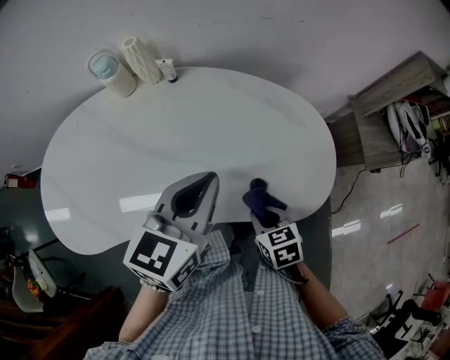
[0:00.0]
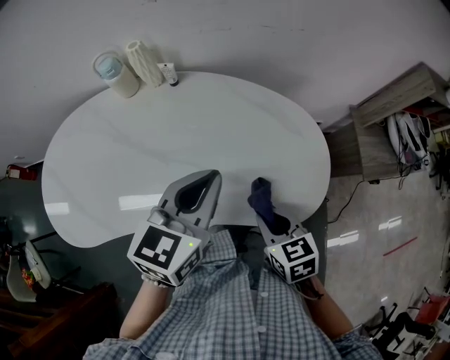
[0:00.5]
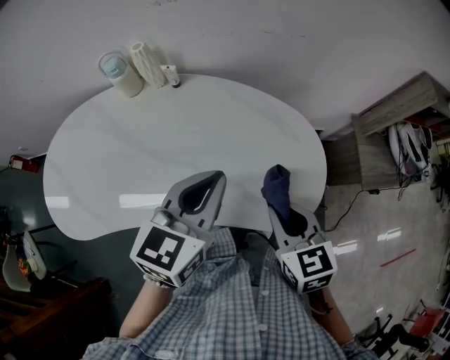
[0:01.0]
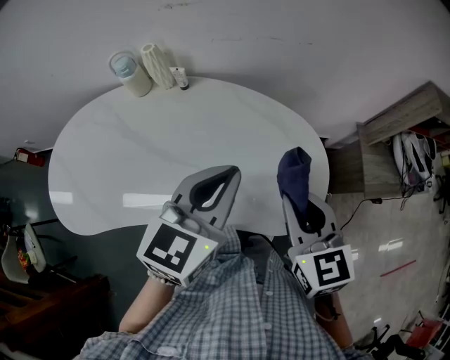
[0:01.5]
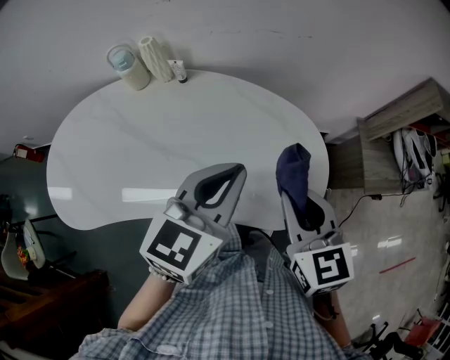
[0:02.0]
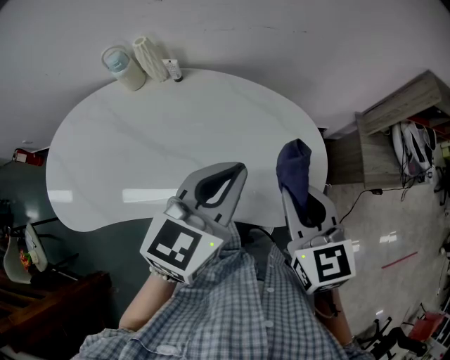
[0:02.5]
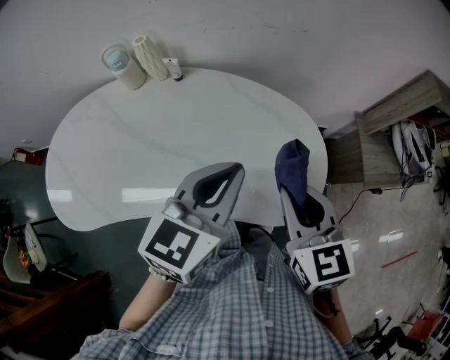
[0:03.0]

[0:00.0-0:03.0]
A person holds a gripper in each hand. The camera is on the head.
0:00.0 to 0:01.5: The left gripper heads to the right, covering approximately 5 cm; the right gripper is displaced upward by some 20 cm, and turns by some 30 degrees.
0:01.5 to 0:03.0: The grippers make only small movements.

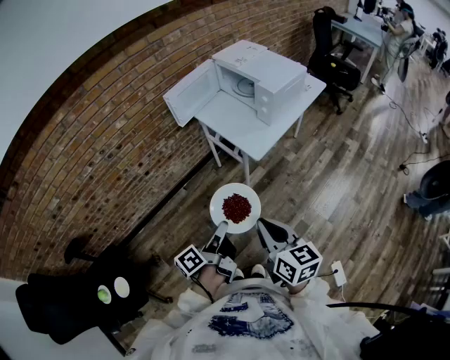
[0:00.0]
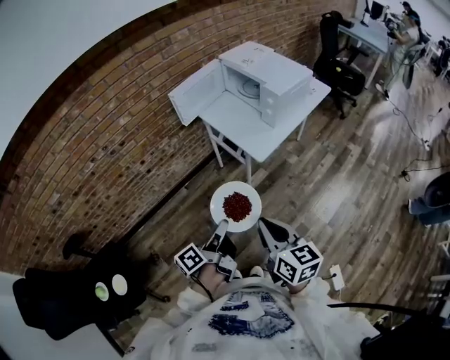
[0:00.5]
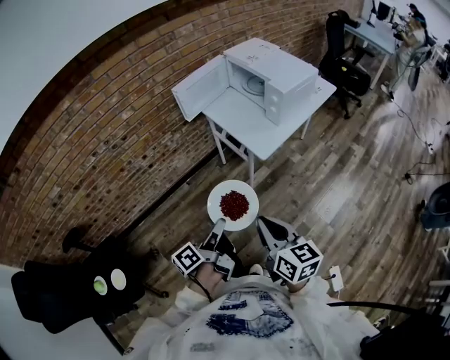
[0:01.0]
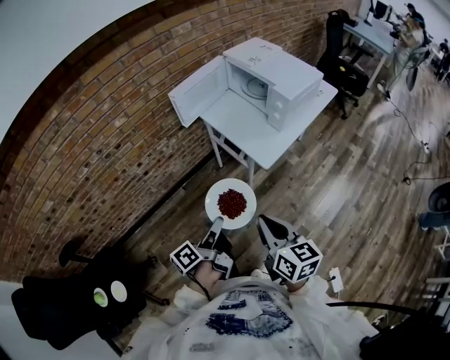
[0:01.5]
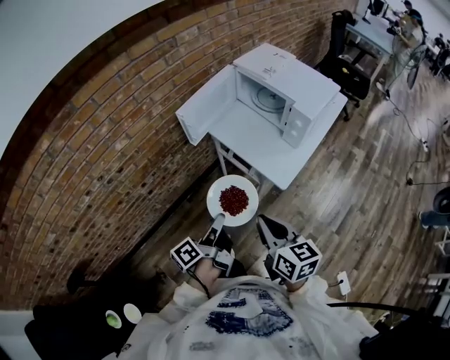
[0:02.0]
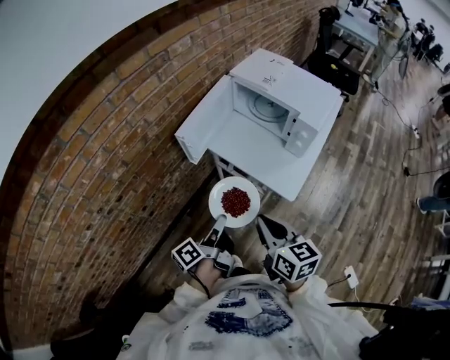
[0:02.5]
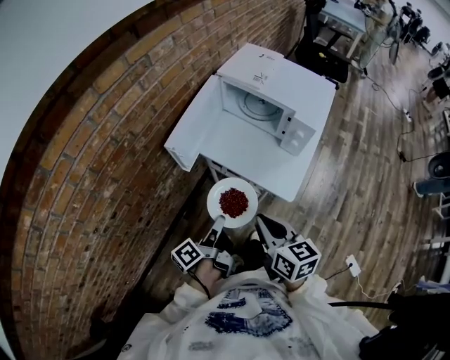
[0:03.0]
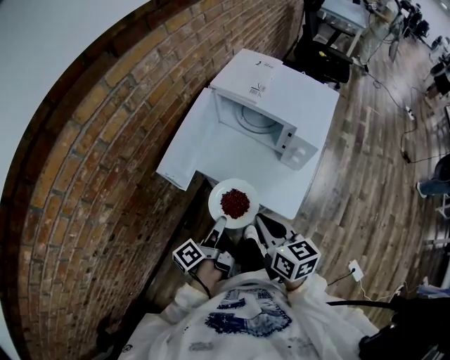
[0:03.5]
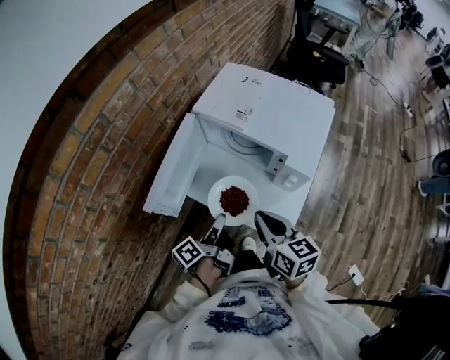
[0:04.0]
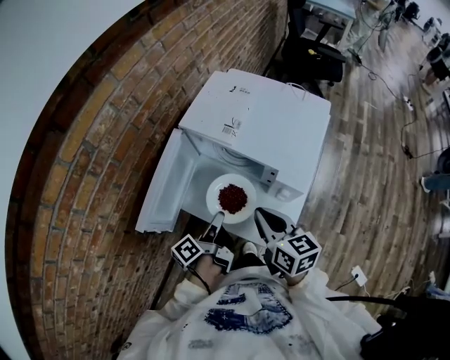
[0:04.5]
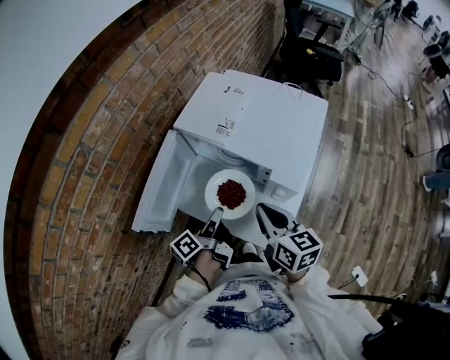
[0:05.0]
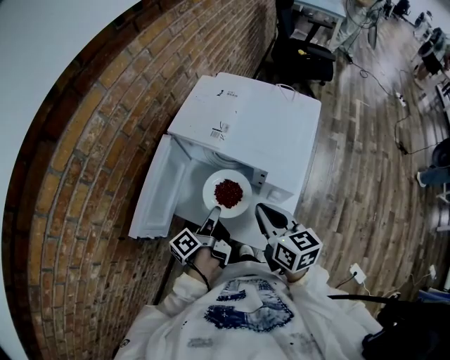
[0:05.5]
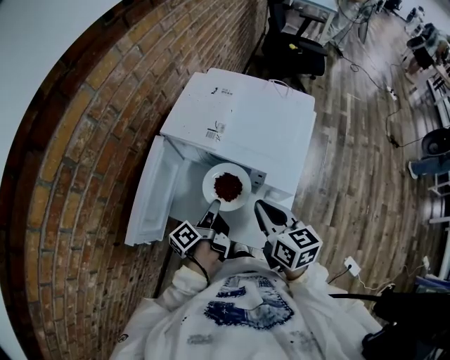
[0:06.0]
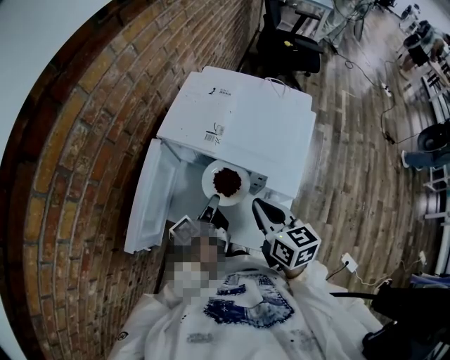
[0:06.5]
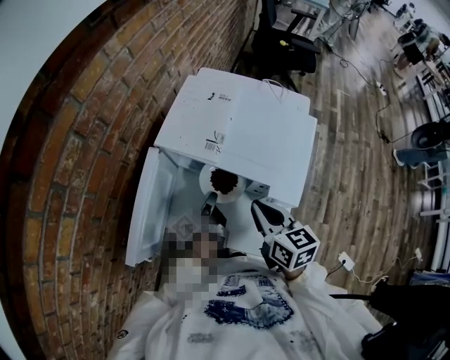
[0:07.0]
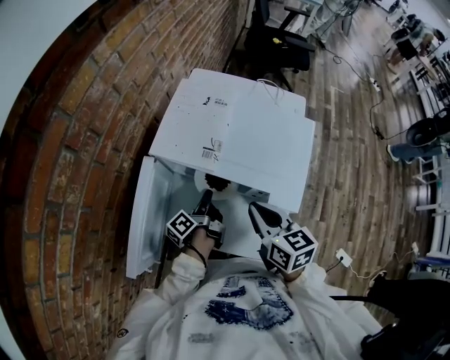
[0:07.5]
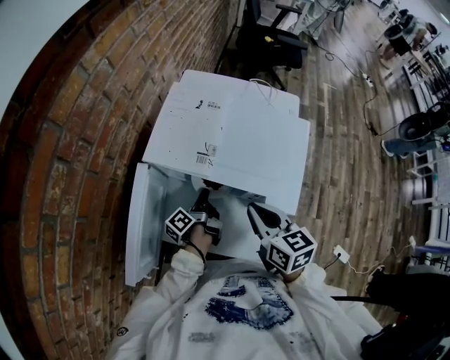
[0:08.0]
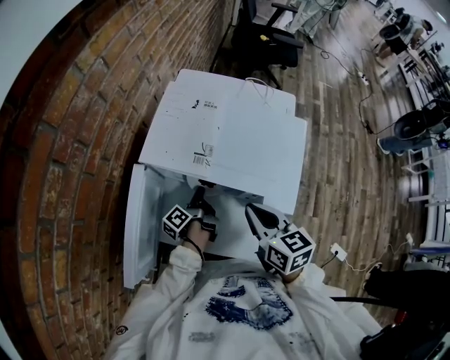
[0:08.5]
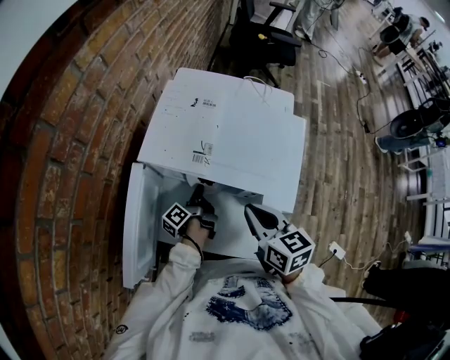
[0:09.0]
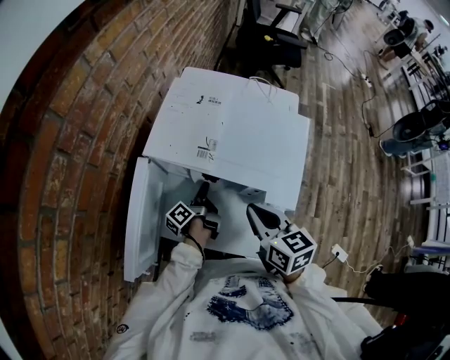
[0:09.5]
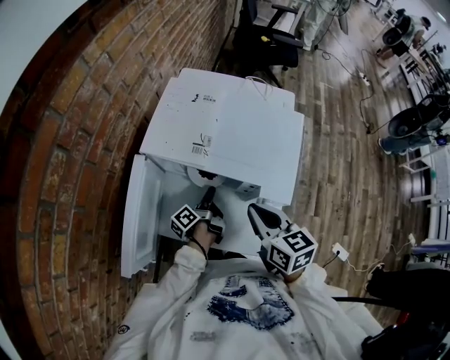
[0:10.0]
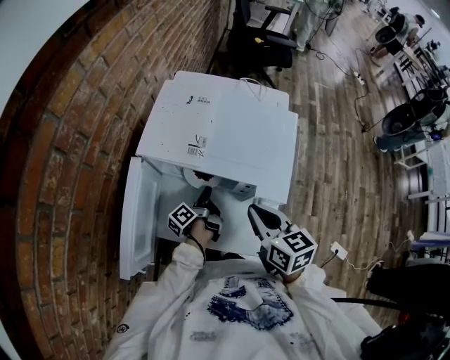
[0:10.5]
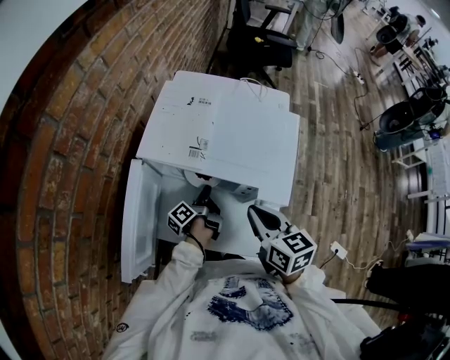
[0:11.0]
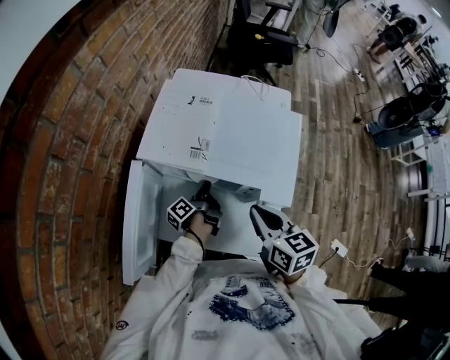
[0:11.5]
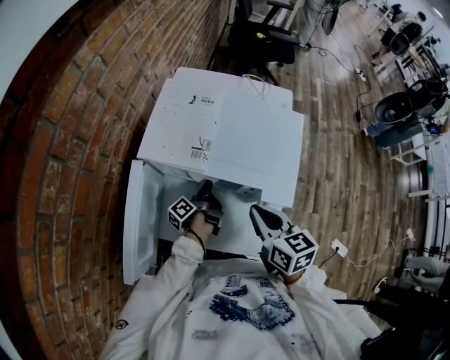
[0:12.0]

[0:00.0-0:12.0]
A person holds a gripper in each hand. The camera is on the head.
0:00.0 to 0:02.0: The right gripper moves approximately 25 cm.
0:02.0 to 0:04.0: The right gripper changes place by about 30 cm.
0:04.0 to 0:06.0: The right gripper changes place by roughly 10 cm.
0:06.0 to 0:08.0: The right gripper ends up roughly 5 cm from where it was.

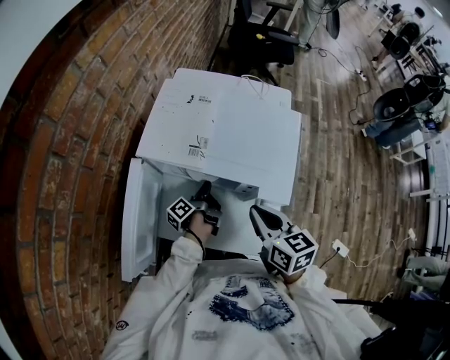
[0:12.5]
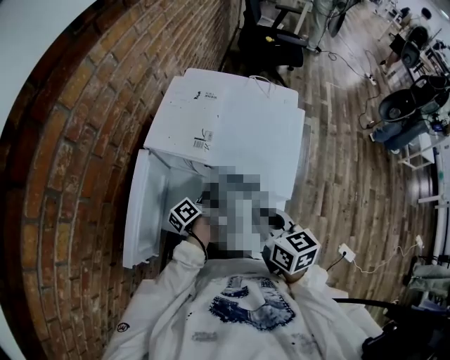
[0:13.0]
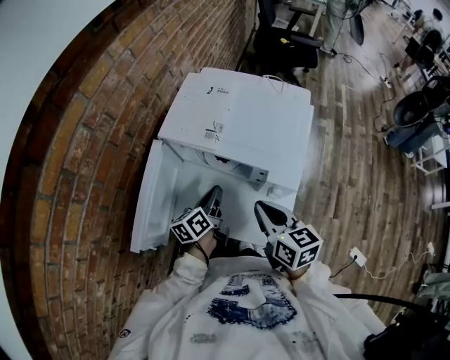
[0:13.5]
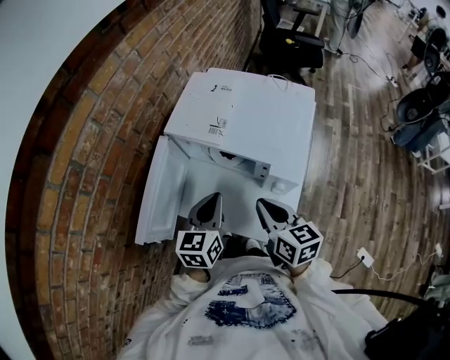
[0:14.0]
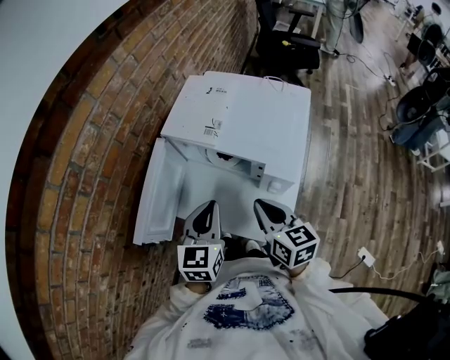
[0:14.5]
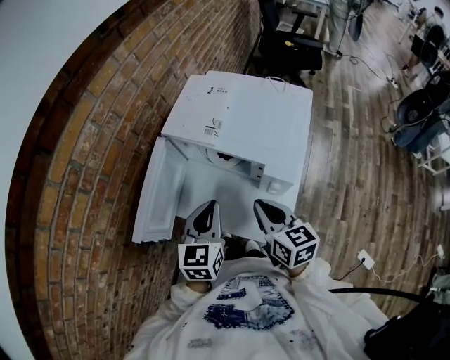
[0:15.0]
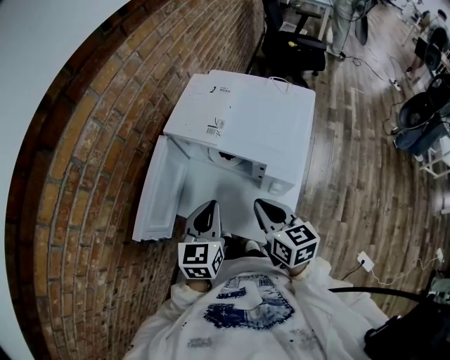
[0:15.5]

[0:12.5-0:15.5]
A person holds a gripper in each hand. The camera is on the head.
0:12.5 to 0:14.0: The right gripper moves approximately 5 cm.

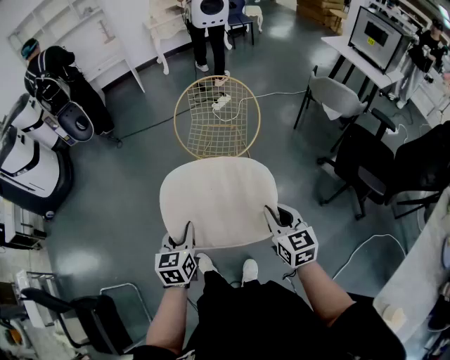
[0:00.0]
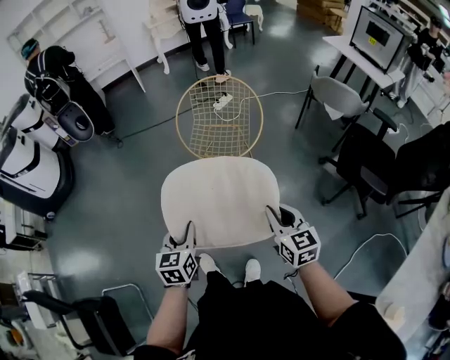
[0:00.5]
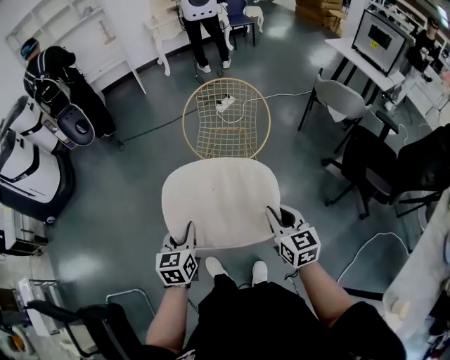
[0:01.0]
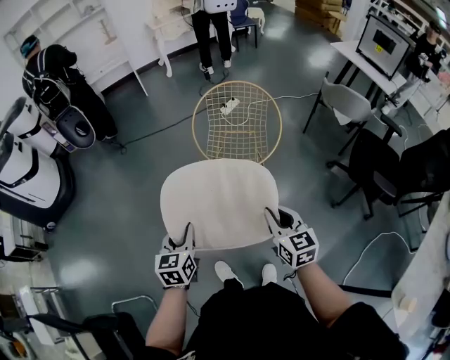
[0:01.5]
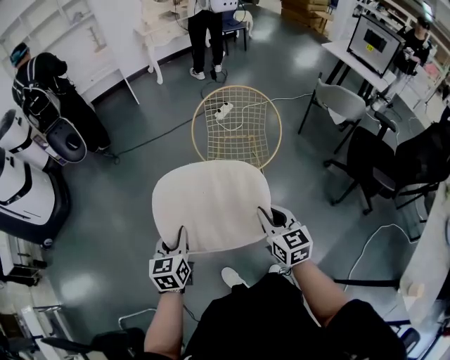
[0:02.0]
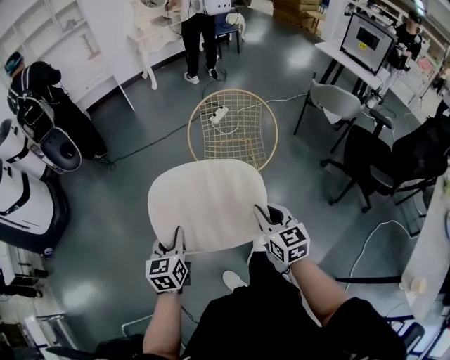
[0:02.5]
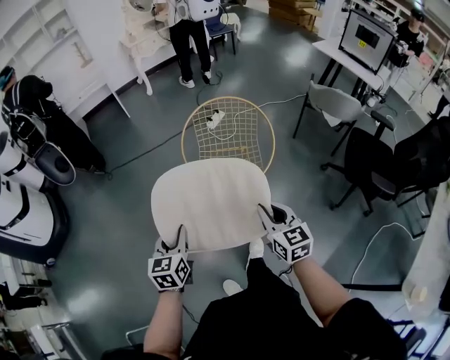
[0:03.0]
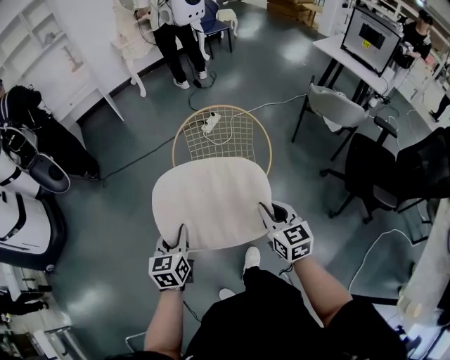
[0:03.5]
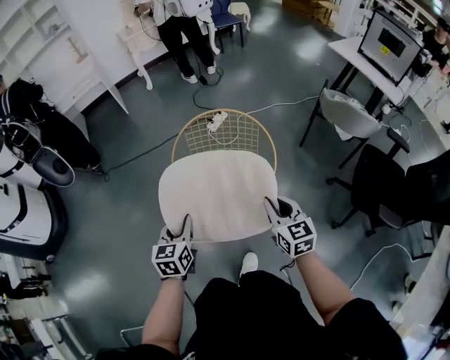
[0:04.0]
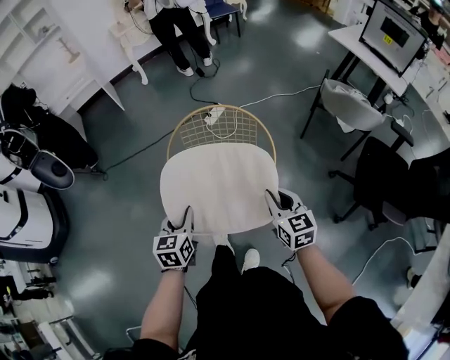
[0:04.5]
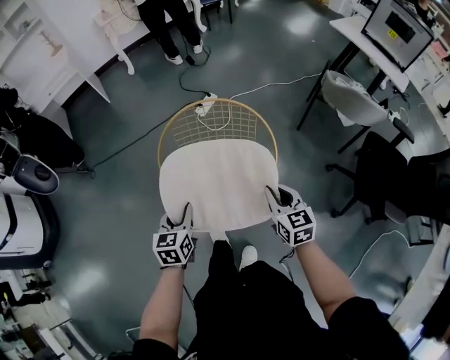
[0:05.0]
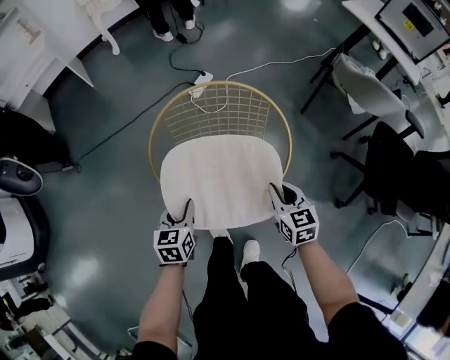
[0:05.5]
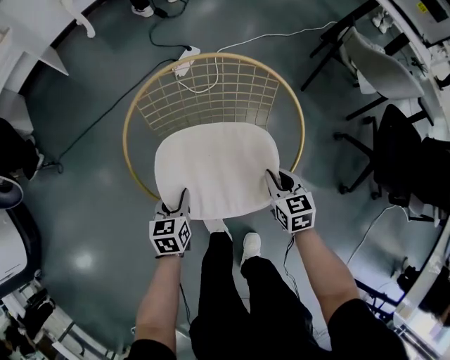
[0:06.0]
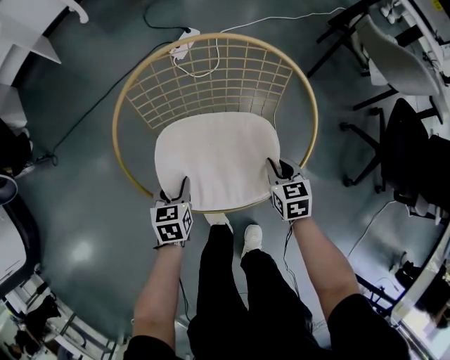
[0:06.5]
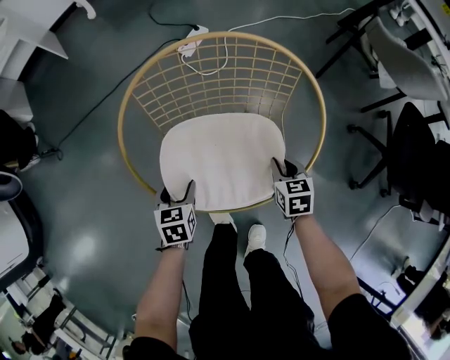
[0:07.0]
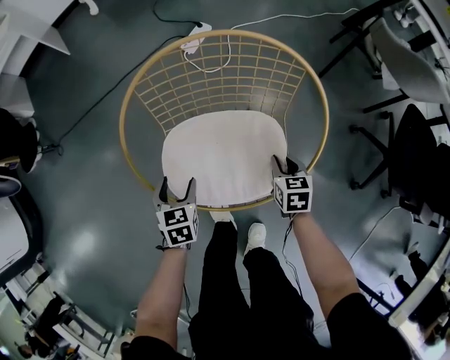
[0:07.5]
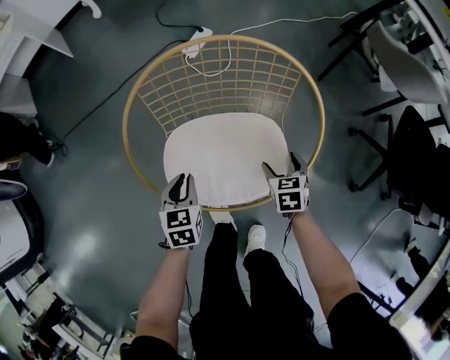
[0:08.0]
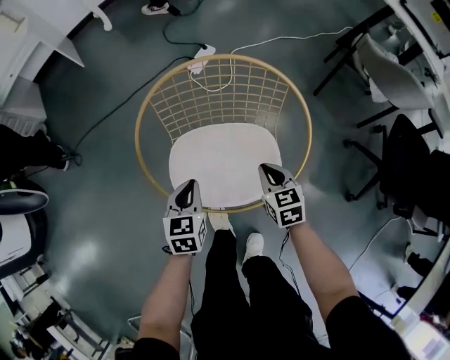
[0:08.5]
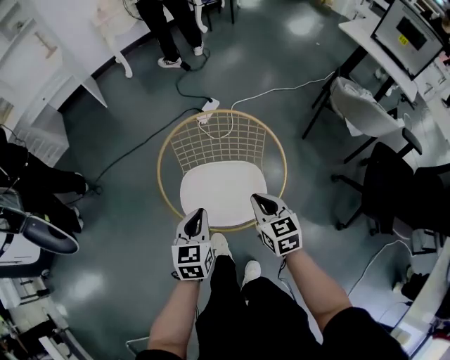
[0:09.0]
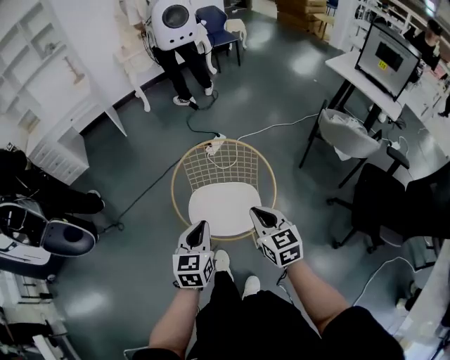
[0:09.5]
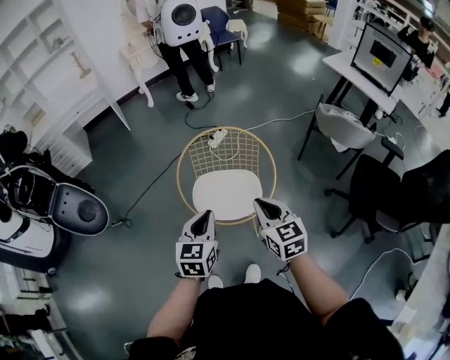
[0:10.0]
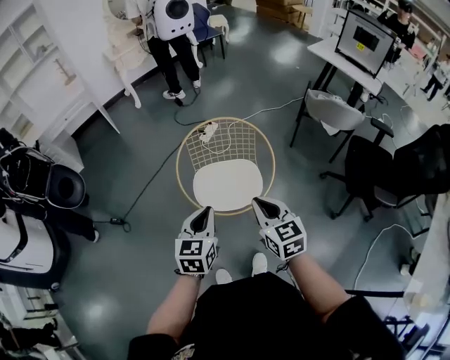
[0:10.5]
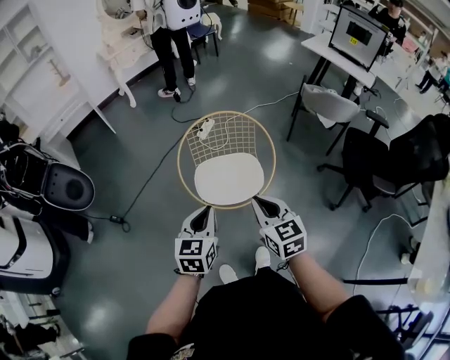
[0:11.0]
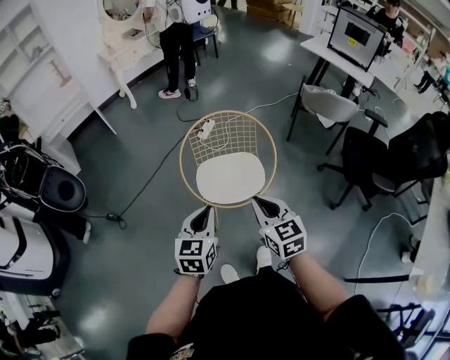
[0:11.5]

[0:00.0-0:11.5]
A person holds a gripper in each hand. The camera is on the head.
0:00.0 to 0:02.0: Both grippers move to the left and forward, roughly 25 cm.
0:02.0 to 0:04.0: The grippers both shift forward and to the right by about 35 cm.
0:04.0 to 0:06.0: The grippers both shift downward and forward by roughly 40 cm. The right gripper changes its angle by about 20 degrees.
0:06.0 to 0:07.5: The right gripper heads downward, covering roughly 10 cm; the left gripper is displaced downward by approximately 5 cm, and opens.
0:07.5 to 0:09.5: Both grippers travel together upward, roughly 50 cm. The left gripper swivels about 30 degrees, and closes, while the right gripper turns by about 40 degrees, and opens and closes again.
0:09.5 to 0:11.5: The two grippers go some 20 cm backward and to the left.
